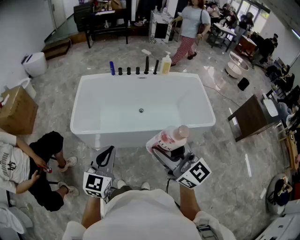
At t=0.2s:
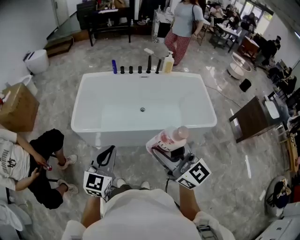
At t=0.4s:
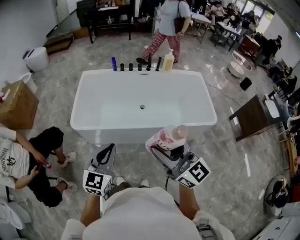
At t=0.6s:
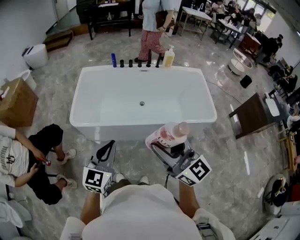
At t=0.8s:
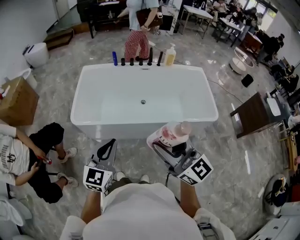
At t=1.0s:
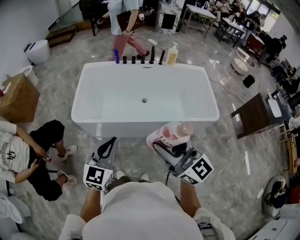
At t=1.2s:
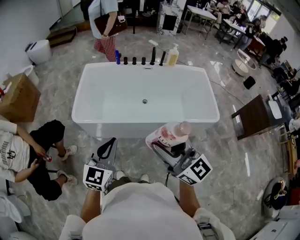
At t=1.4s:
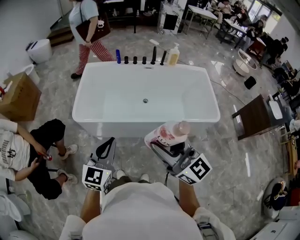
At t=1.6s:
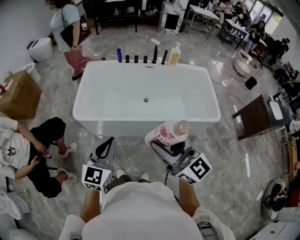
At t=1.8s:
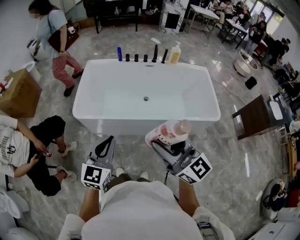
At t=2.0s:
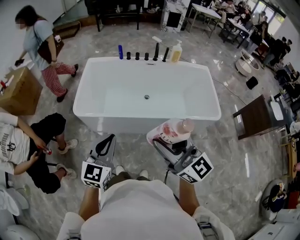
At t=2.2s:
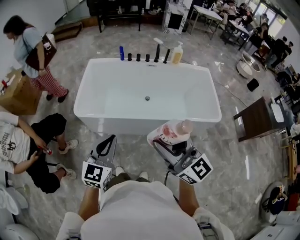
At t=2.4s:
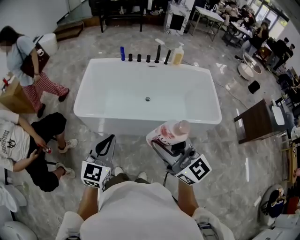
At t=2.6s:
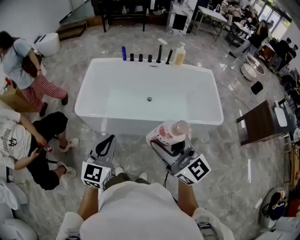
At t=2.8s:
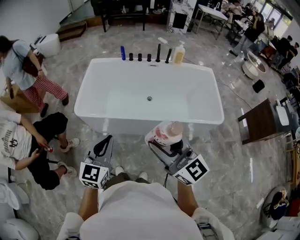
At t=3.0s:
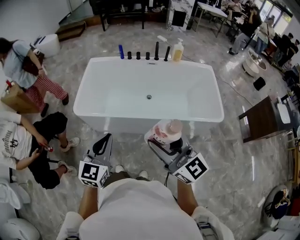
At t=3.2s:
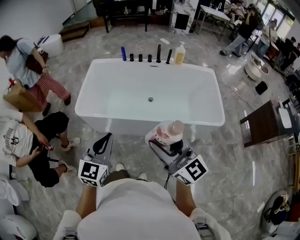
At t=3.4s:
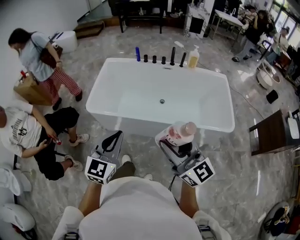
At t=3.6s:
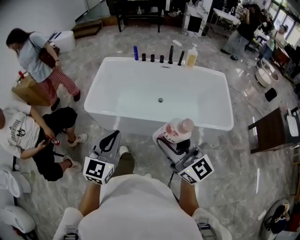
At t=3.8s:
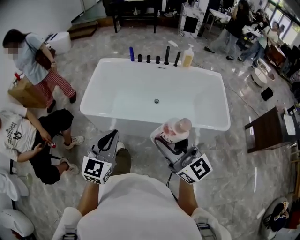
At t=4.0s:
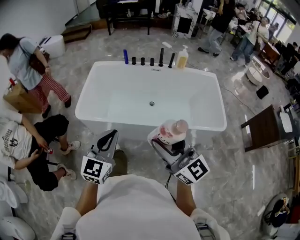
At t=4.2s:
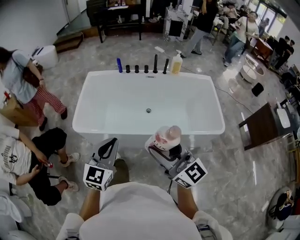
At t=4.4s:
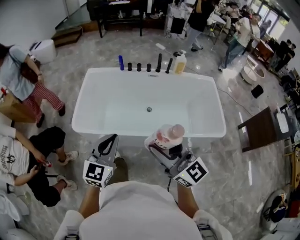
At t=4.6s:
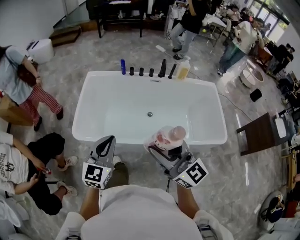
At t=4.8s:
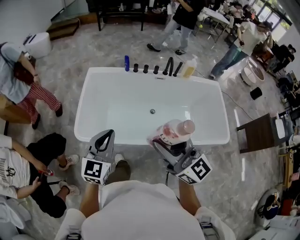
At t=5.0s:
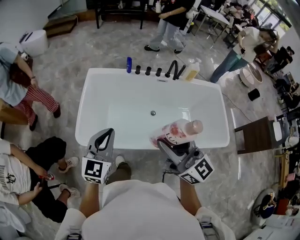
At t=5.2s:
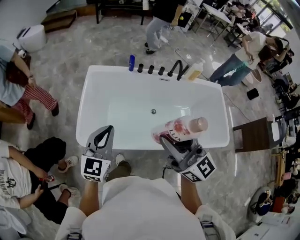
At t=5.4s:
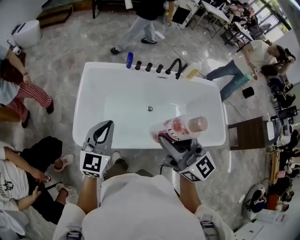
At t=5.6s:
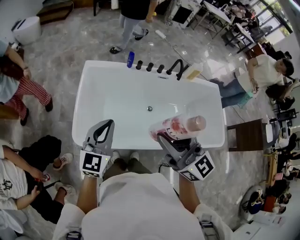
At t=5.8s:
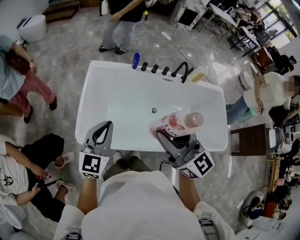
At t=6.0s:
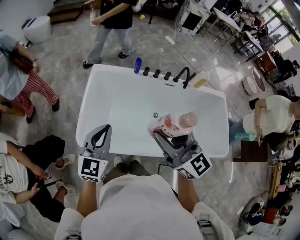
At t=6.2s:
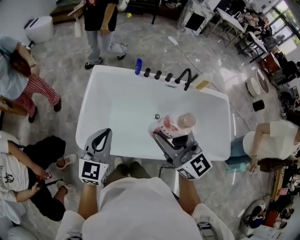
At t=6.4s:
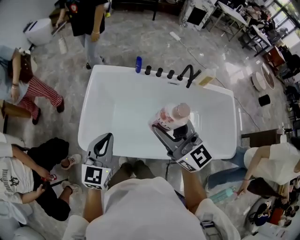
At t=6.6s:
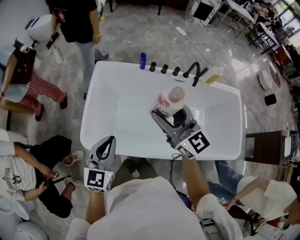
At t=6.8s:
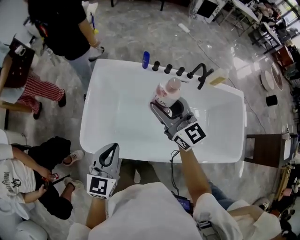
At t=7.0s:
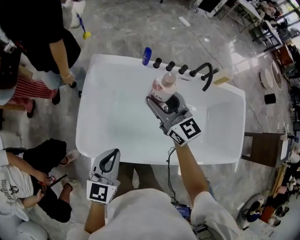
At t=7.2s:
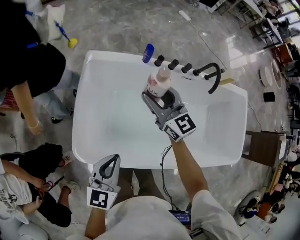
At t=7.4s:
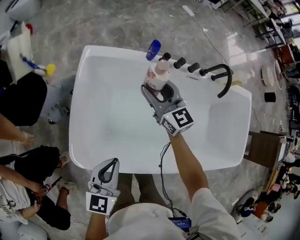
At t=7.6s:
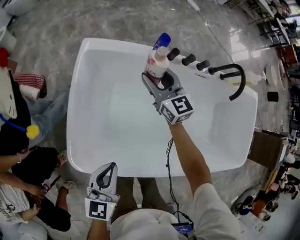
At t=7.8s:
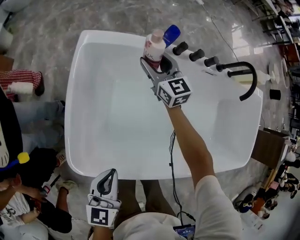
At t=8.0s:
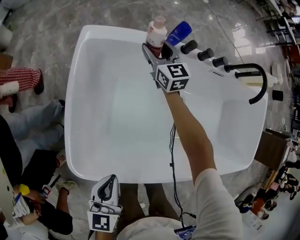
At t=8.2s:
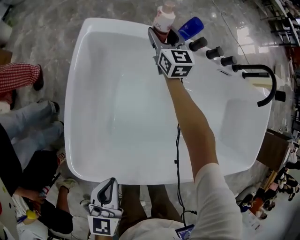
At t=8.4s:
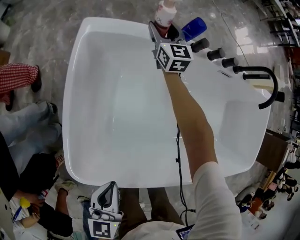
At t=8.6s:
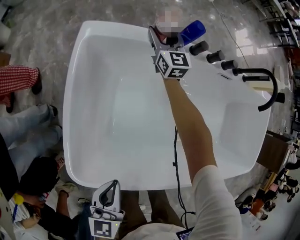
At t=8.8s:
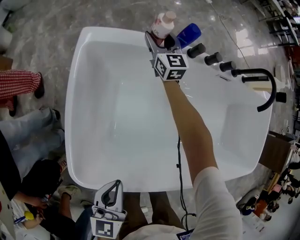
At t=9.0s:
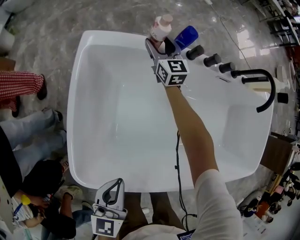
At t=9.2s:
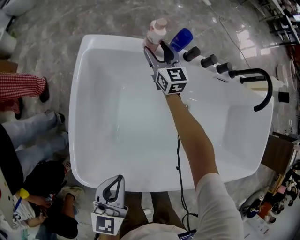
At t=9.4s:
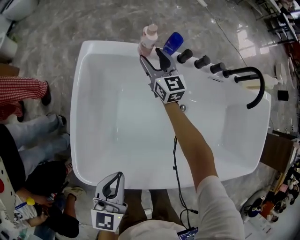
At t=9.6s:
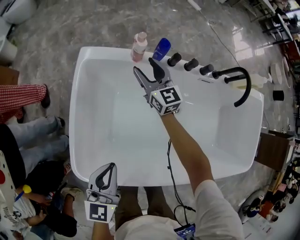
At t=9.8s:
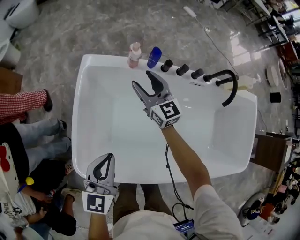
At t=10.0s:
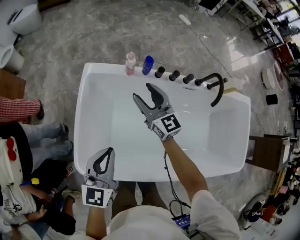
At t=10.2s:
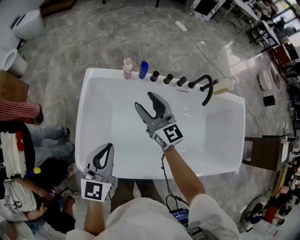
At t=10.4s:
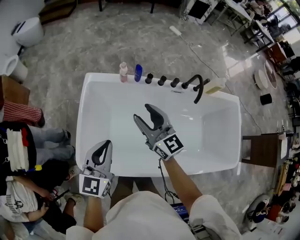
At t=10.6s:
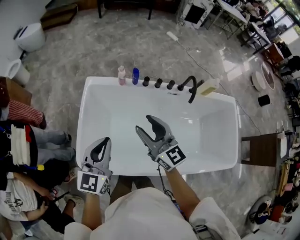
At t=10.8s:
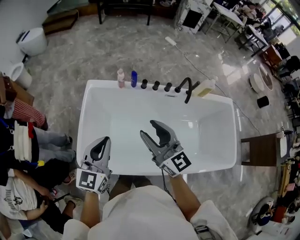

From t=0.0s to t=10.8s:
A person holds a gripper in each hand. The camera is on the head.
From t=0.0s to t=1.6s: Neither gripper changes place.
From t=1.6s to t=3.0s: The right gripper travels to the right by about 5 cm.
From t=3.0s to t=4.6s: The two grippers go about 20 cm forward.
From t=4.6s to t=6.2s: The left gripper moves forward and to the left, some 25 cm. Meanwhile the right gripper moves forward, about 25 cm.
From t=6.2s to t=7.8s: The right gripper moves forward and downward, some 70 cm. The left gripper heads downward, covering about 30 cm, and turns by roughly 30 degrees.
From t=7.8s to t=9.2s: The right gripper heads forward and downward, covering about 10 cm.
From t=9.2s to t=10.8s: The right gripper travels upward and backward by some 60 cm; the left gripper travels upward by approximately 30 cm, and turns by some 30 degrees.

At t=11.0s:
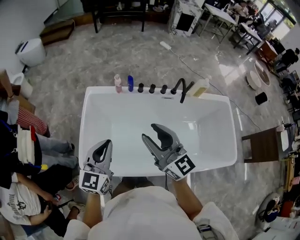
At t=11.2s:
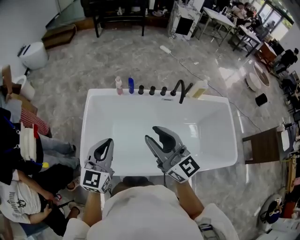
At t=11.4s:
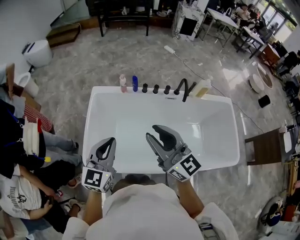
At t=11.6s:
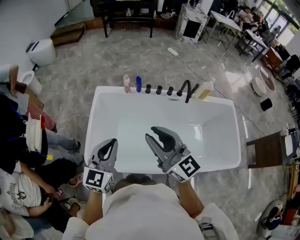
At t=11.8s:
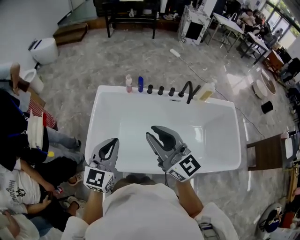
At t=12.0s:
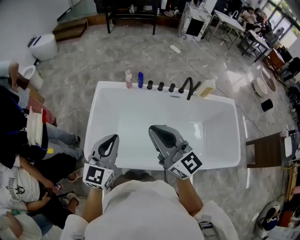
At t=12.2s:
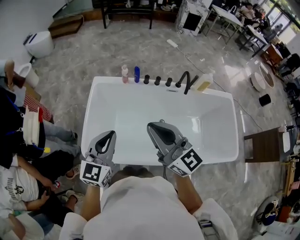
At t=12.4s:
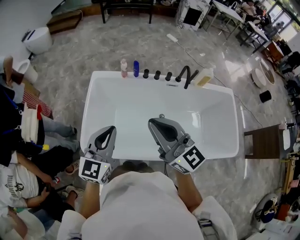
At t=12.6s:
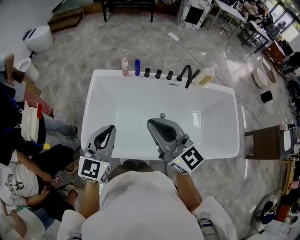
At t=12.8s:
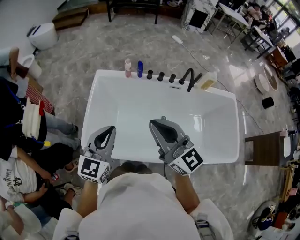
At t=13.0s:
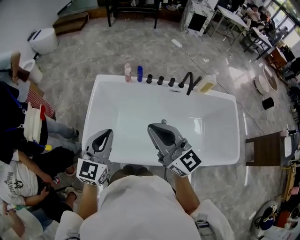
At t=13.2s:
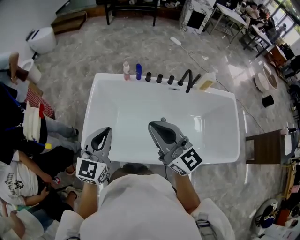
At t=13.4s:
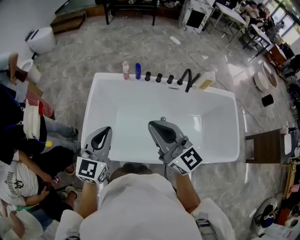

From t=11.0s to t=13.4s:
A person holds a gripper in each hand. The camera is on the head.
From t=11.0s to t=12.2s: The grippers both shift backward by about 5 cm. The right gripper closes up.
From t=12.2s to t=13.4s: The grippers move only a little.

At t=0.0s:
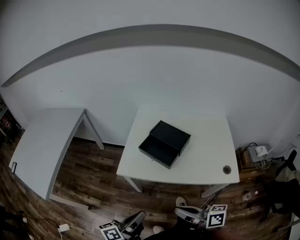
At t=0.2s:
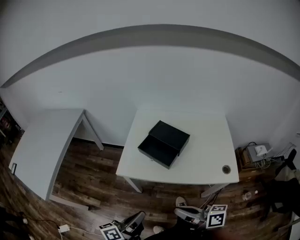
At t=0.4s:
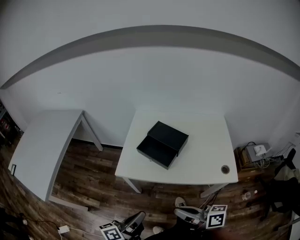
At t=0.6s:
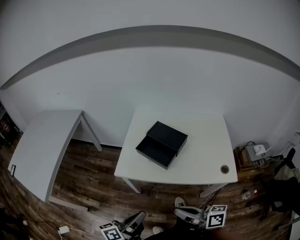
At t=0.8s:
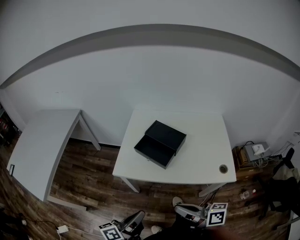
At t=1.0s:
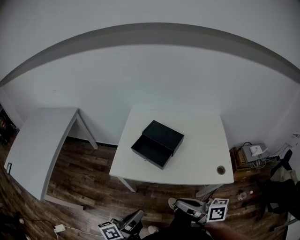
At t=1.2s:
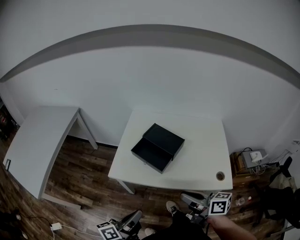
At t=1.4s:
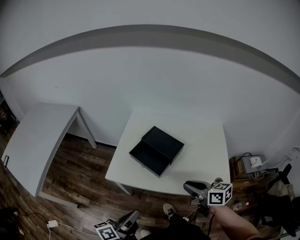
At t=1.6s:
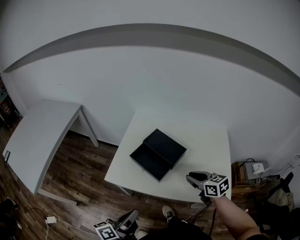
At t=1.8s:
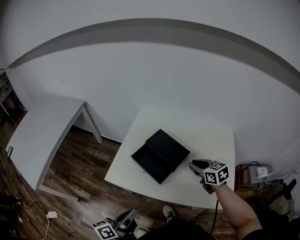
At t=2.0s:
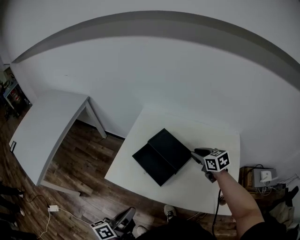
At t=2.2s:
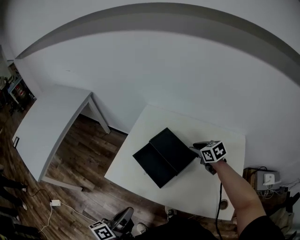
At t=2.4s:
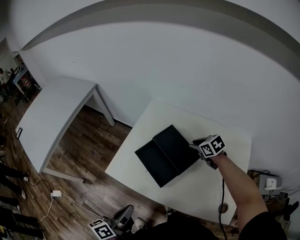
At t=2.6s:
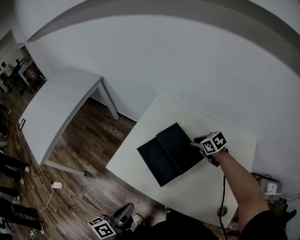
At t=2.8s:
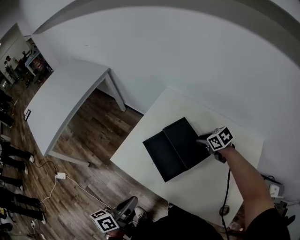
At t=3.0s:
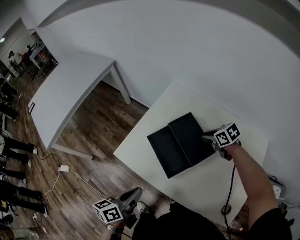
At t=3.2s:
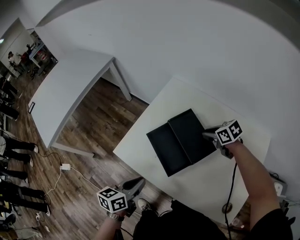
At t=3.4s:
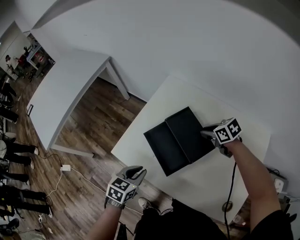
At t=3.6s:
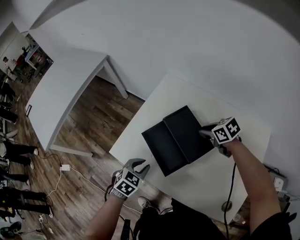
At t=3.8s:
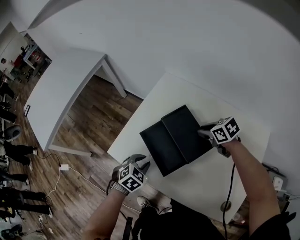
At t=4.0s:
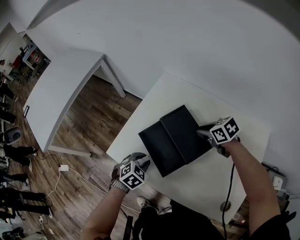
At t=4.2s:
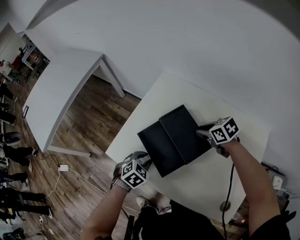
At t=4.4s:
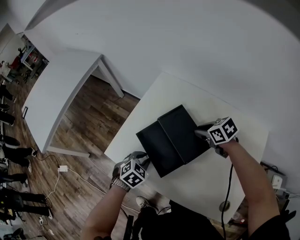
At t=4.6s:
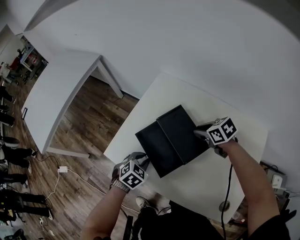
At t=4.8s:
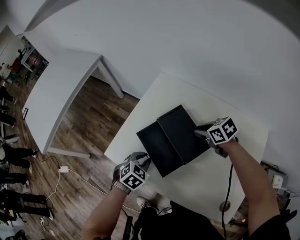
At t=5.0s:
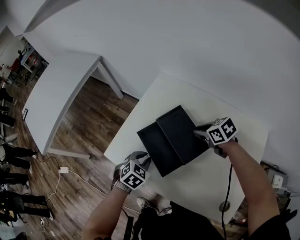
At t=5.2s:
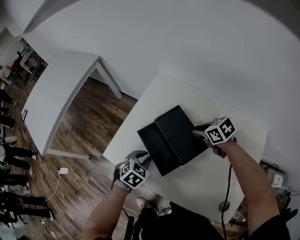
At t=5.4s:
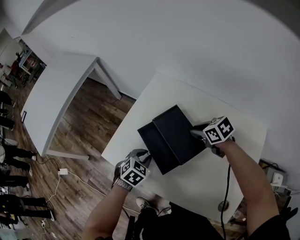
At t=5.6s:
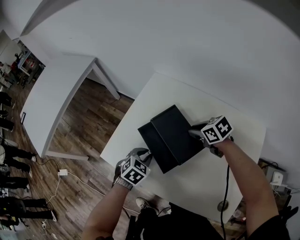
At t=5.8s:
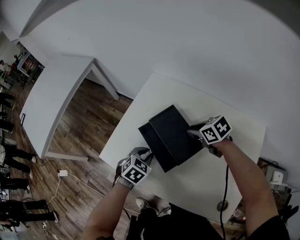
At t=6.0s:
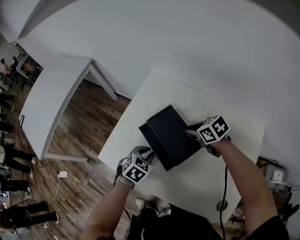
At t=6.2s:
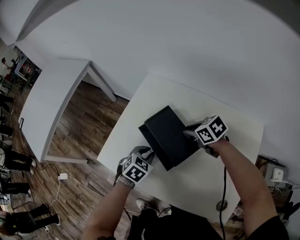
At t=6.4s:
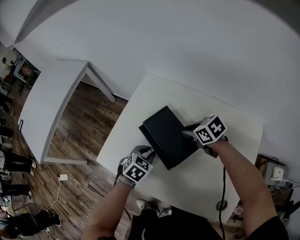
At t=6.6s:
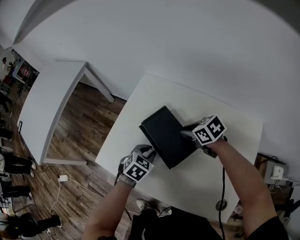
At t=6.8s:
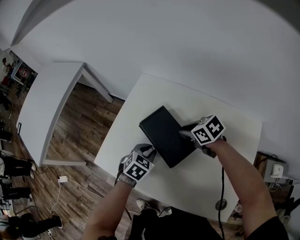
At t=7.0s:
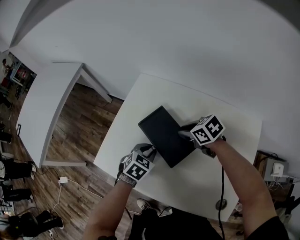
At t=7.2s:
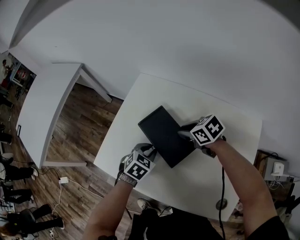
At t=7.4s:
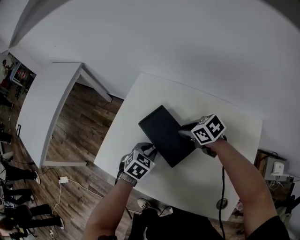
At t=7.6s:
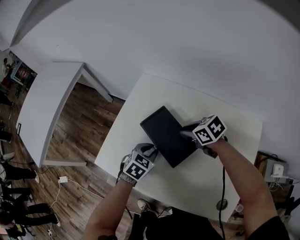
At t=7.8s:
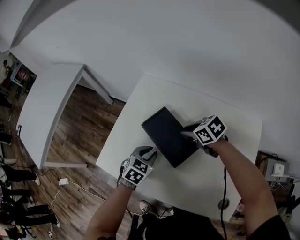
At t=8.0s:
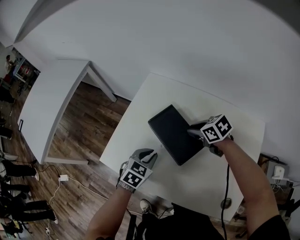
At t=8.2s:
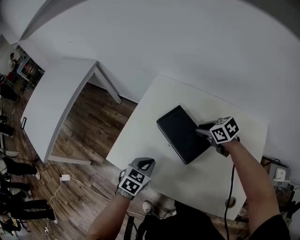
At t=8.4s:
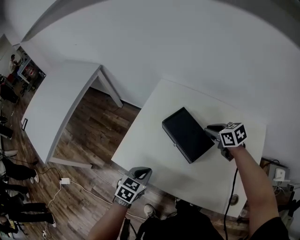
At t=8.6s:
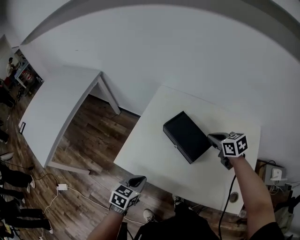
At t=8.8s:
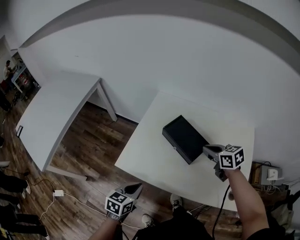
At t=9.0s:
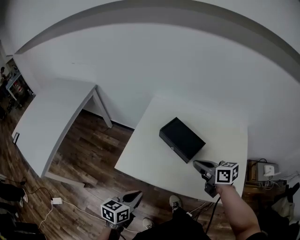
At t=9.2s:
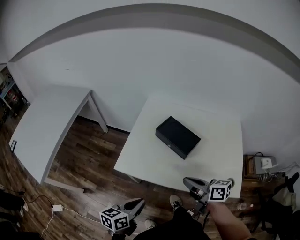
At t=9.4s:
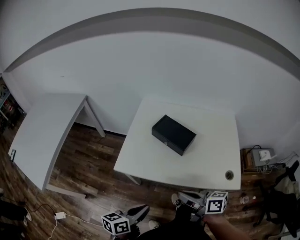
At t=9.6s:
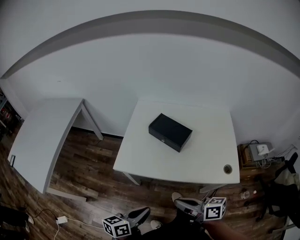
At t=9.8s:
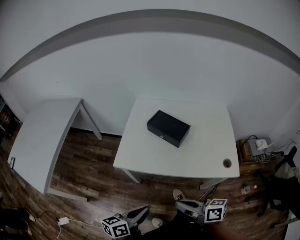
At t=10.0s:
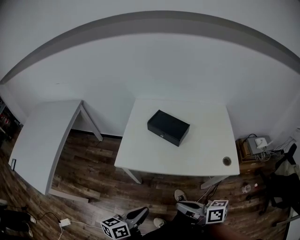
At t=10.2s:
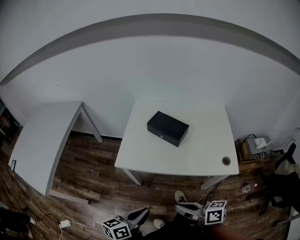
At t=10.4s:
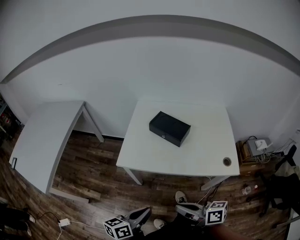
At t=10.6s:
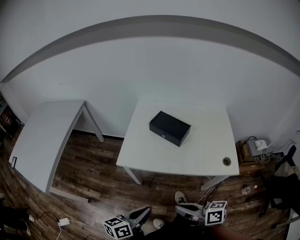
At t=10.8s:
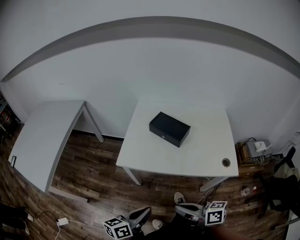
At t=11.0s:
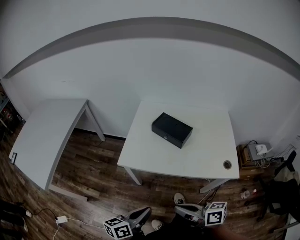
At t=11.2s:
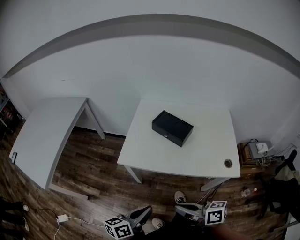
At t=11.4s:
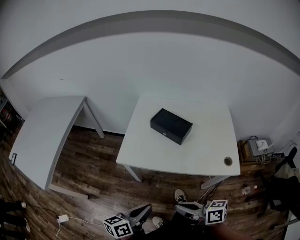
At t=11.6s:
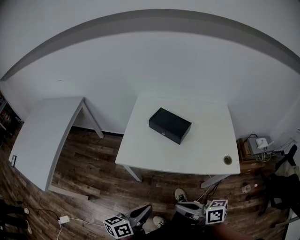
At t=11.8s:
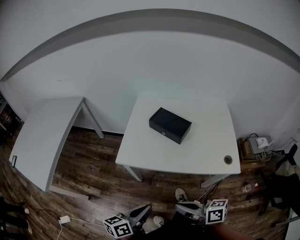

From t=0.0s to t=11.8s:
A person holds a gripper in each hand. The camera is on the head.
From t=0.0s to t=1.4s: The left gripper changes place by roughly 5 cm. Meanwhile the right gripper is displaced forward and to the right by approximately 20 cm, and changes its angle by roughly 30 degrees.
From t=1.4s to t=3.0s: The right gripper shifts by approximately 35 cm, and tips its fingers downward by some 30 degrees, while the left gripper moves approximately 10 cm, and turns by approximately 30 degrees.
From t=3.0s to t=4.4s: The left gripper shifts roughly 20 cm downward, forward and to the right, and twists roughly 60 degrees clockwise, seen from behind.
From t=4.4s to t=6.0s: The left gripper is displaced to the right by some 5 cm.
From t=6.0s to t=7.4s: There are only small adjustments of the grippers.
From t=7.4s to t=8.8s: The right gripper is displaced backward and upward by some 15 cm, swivels about 20 degrees, and closes its fingers. Meanwhile the left gripper goes roughly 25 cm to the left and backward, and turns by some 30 degrees.
From t=8.8s to t=10.4s: The right gripper heads backward, covering some 40 cm, and turns by some 40 degrees; the left gripper goes roughly 20 cm backward, and changes its angle by about 30 degrees.
From t=10.4s to t=11.8s: Both grippers stay about where they are.
